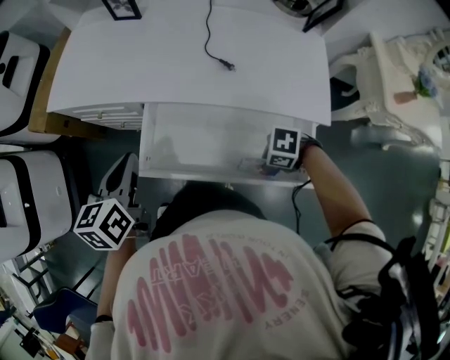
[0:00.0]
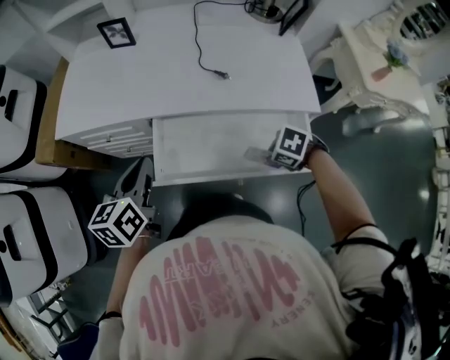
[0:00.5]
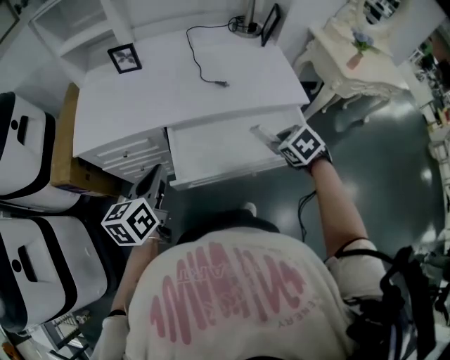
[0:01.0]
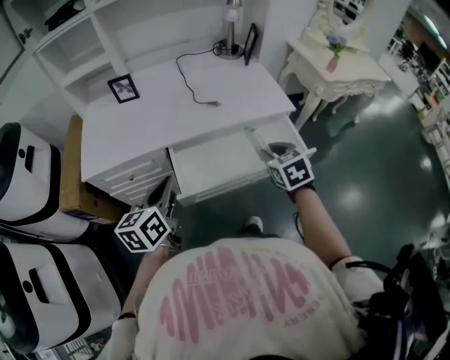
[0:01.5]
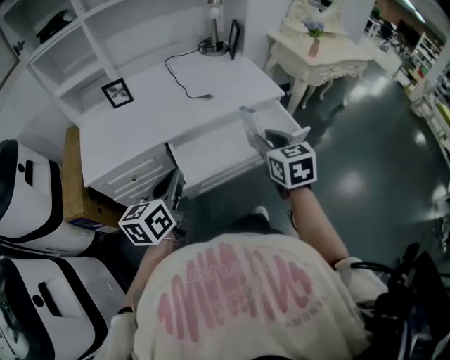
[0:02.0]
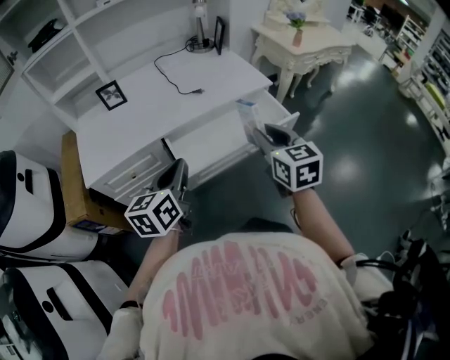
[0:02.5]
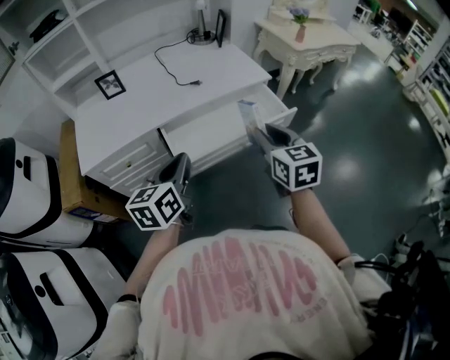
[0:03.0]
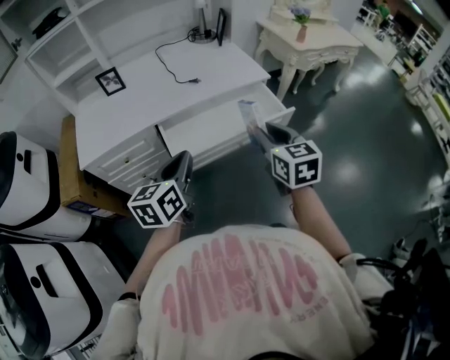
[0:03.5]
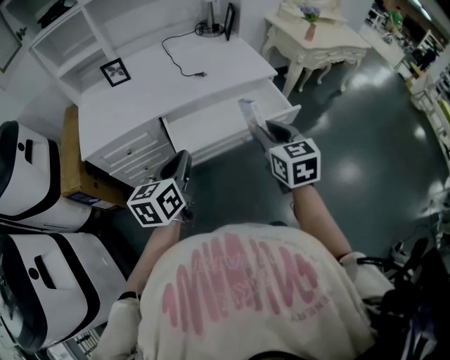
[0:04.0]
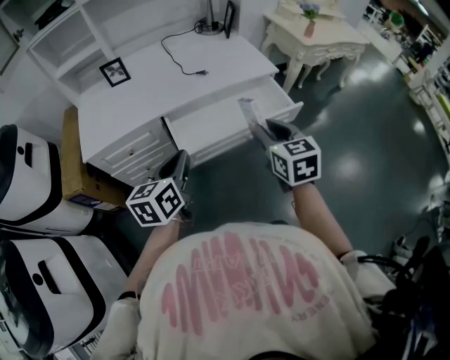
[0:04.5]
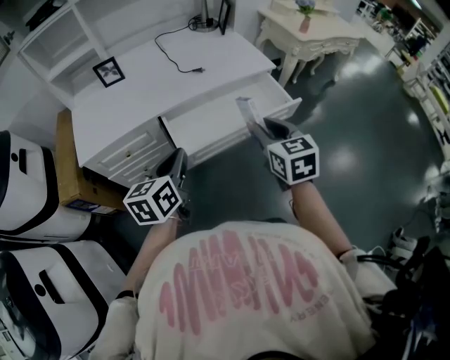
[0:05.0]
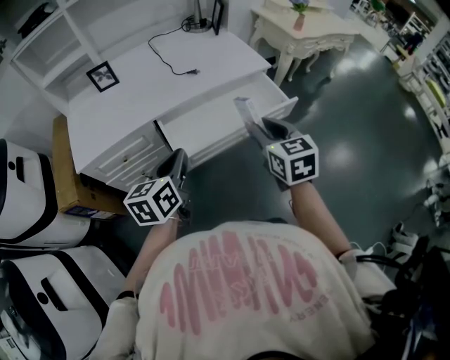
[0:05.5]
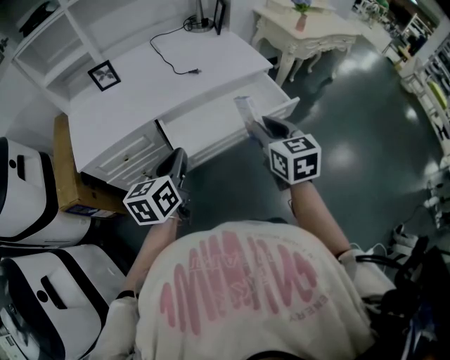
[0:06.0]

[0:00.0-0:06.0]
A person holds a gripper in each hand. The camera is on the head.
0:00.0 to 0:02.0: The right gripper is displaced upward by roughly 25 cm, and tilts its fingers roughly 40 degrees upward, while the left gripper changes place by roughly 10 cm, and changes its angle by approximately 40 degrees.
0:02.0 to 0:04.0: The left gripper is displaced to the right by roughly 5 cm, while the right gripper moves backward, roughly 10 cm.
0:04.0 to 0:06.0: The grippers make only small movements.

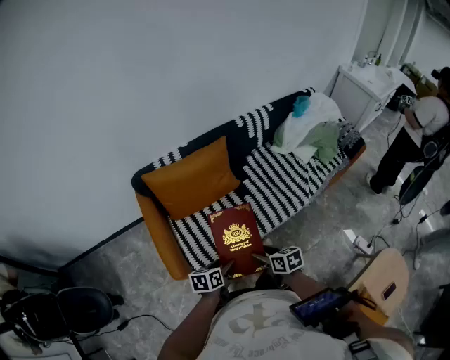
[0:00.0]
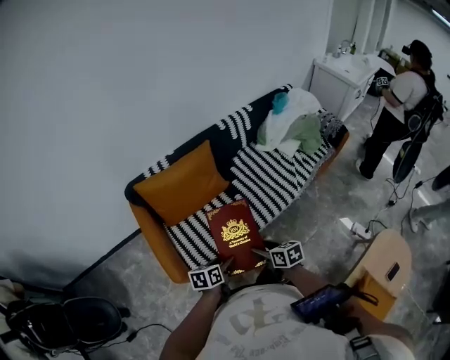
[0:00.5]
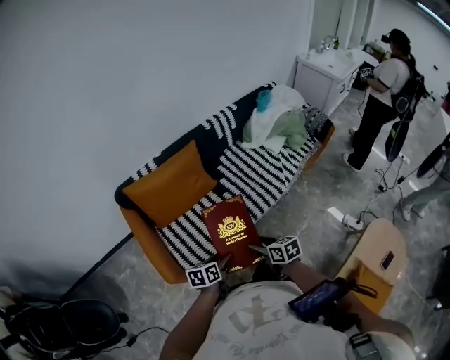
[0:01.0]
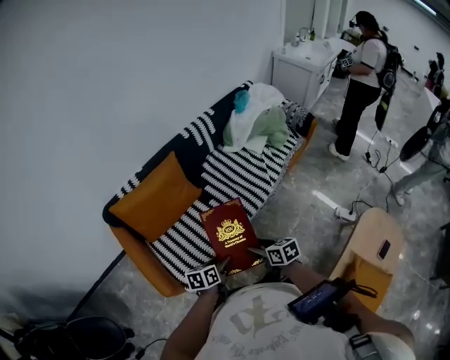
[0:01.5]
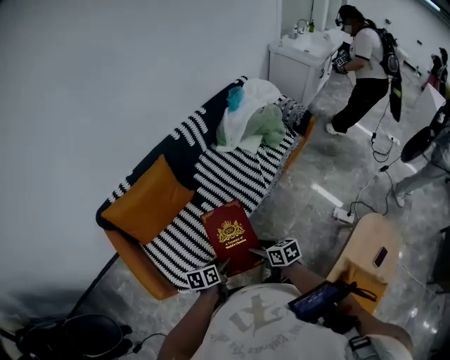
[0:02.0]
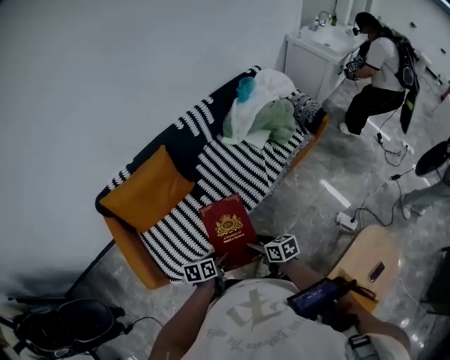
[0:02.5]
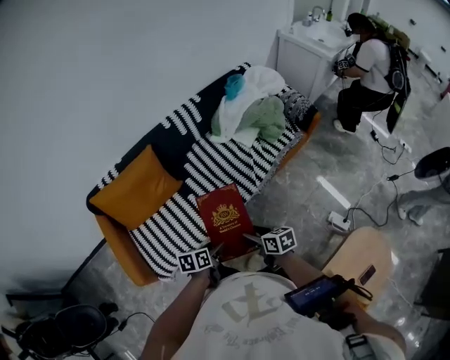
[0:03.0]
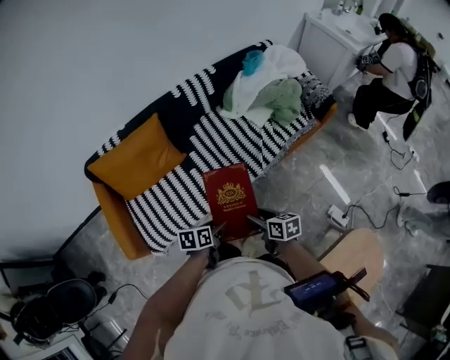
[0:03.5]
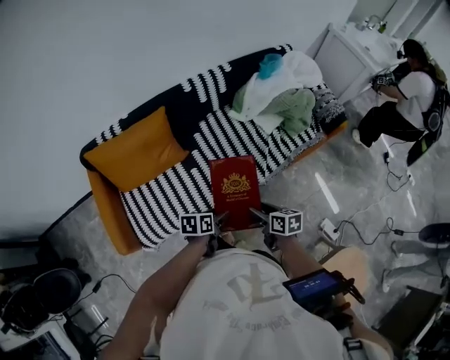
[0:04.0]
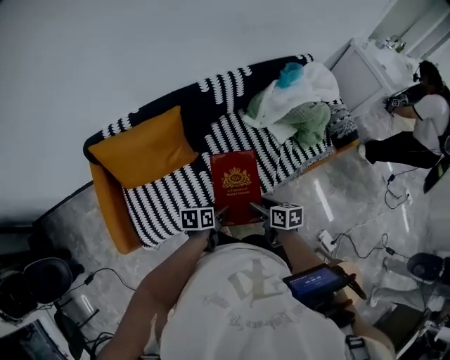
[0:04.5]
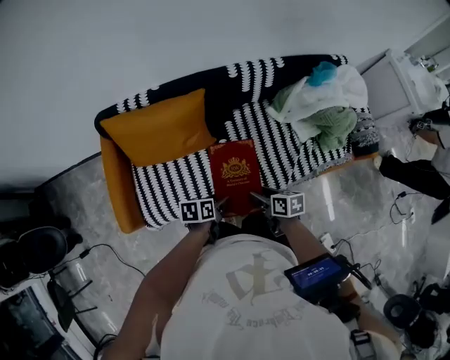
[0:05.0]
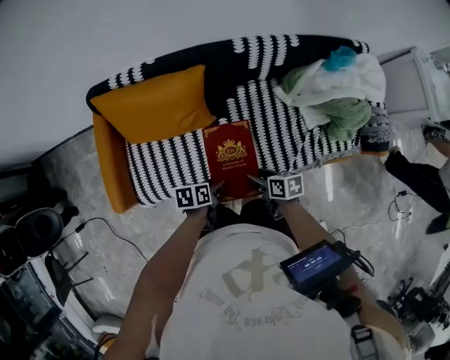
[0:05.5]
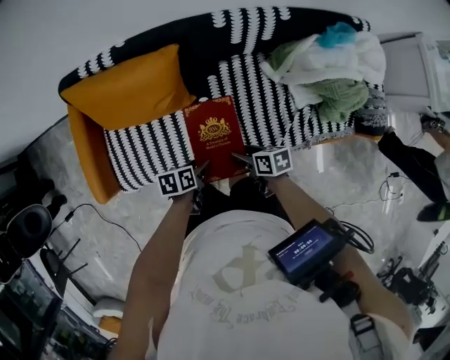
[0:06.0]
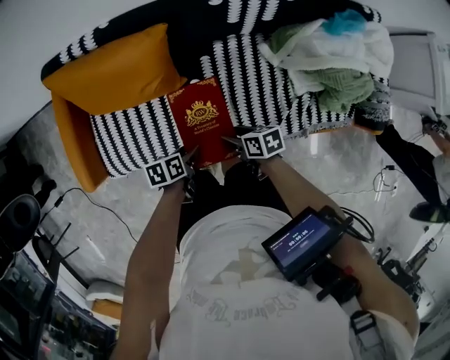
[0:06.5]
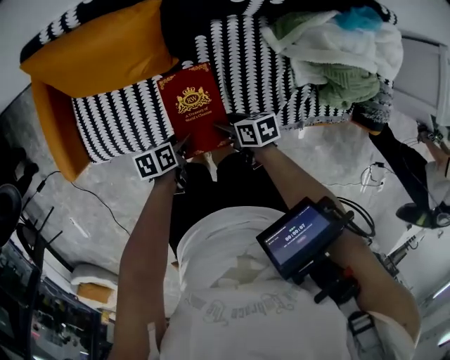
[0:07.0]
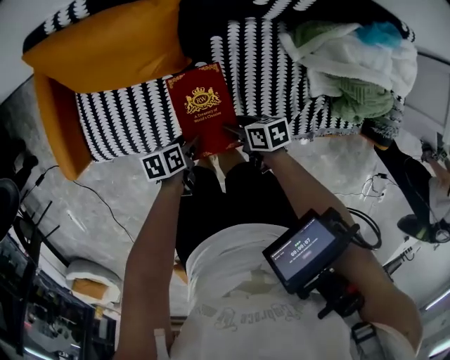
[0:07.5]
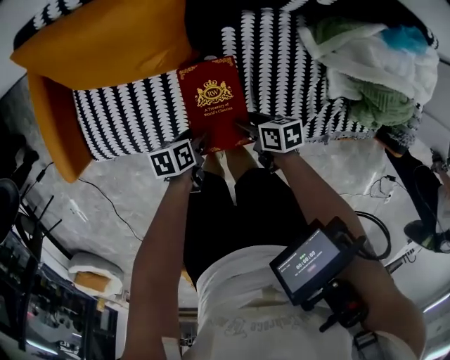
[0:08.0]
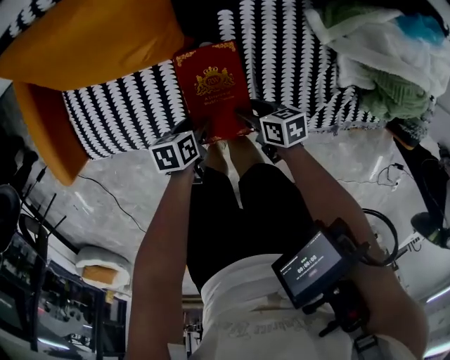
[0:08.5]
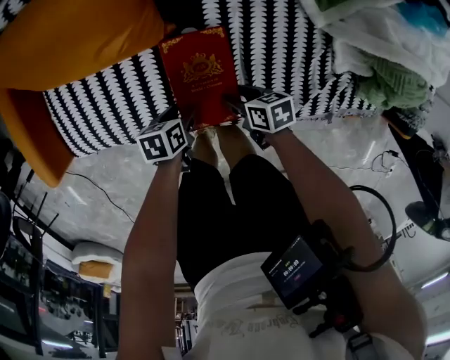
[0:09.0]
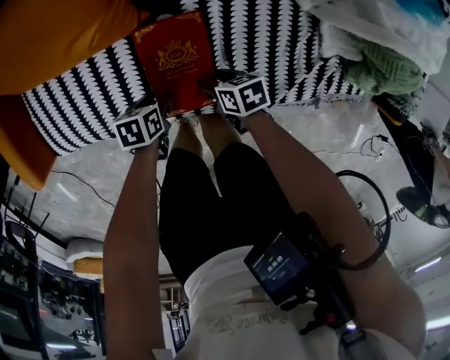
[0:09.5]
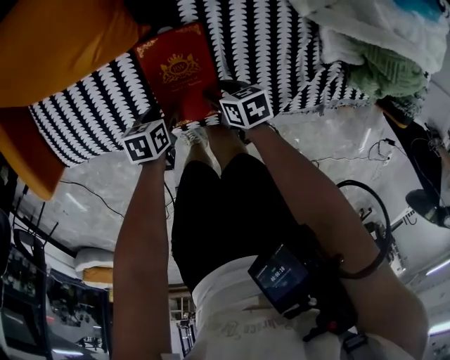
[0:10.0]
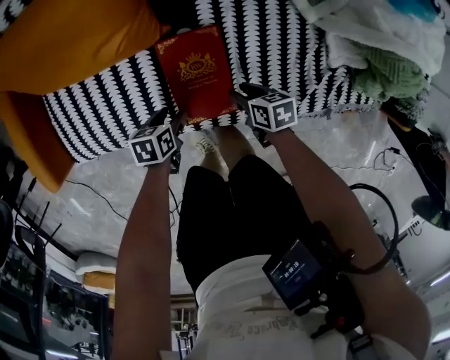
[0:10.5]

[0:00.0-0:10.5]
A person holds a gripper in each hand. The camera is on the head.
0:00.0 to 0:02.0: The two grippers go about 20 cm to the right.
0:02.0 to 0:04.0: The two grippers go approximately 20 cm forward and to the right.
0:04.0 to 0:06.5: The right gripper shifts by roughly 30 cm, and rotates approximately 40 degrees. Meanwhile the left gripper changes place by some 25 cm, and rotates approximately 30 degrees.
0:06.5 to 0:08.5: Both grippers travel together downward, some 20 cm.
0:08.5 to 0:10.5: The grippers stay close to where they were, moving slightly.

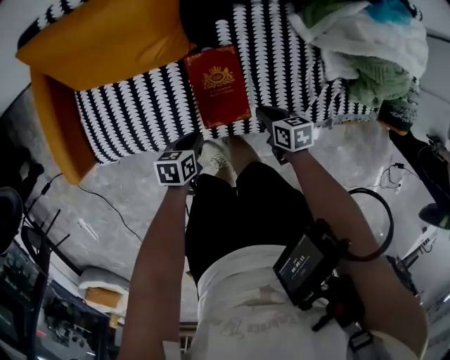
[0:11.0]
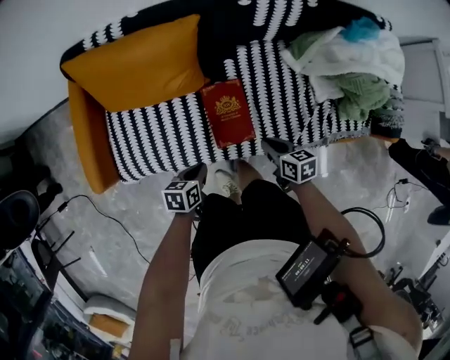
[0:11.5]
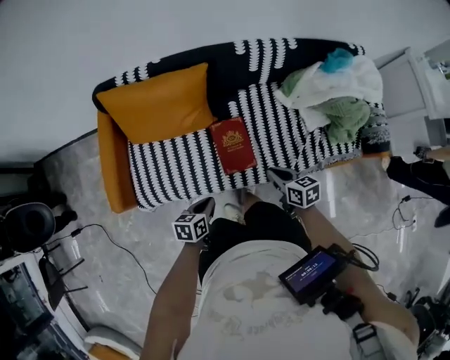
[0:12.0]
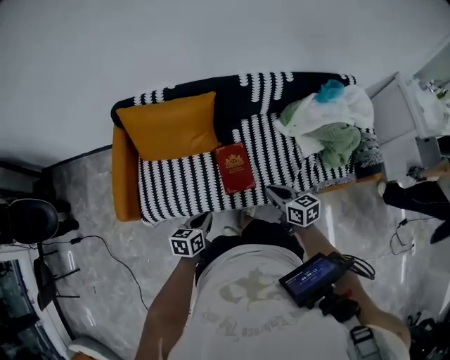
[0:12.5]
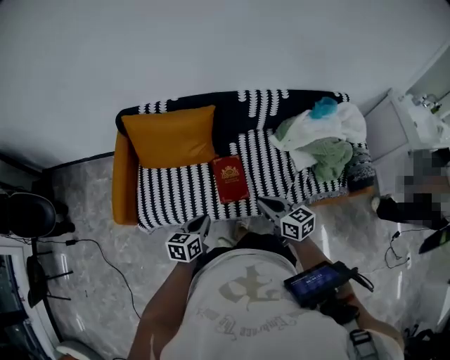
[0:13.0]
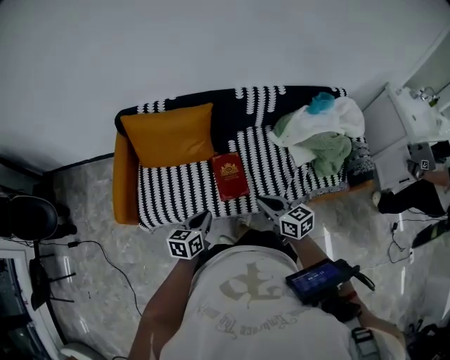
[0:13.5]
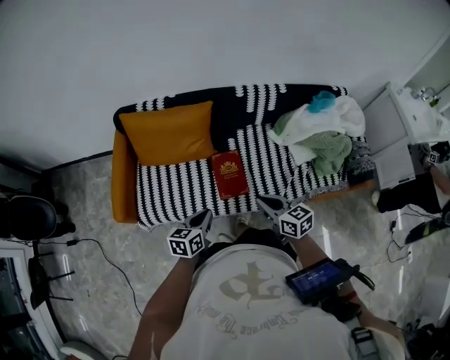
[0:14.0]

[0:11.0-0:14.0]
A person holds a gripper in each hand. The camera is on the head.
0:11.0 to 0:12.5: The left gripper shifts approximately 25 cm upward and backward, and swivels some 20 degrees, while the right gripper heads upward, covering roughly 30 cm, and swivels approximately 30 degrees.
0:12.5 to 0:14.0: The two grippers go some 5 cm upward.

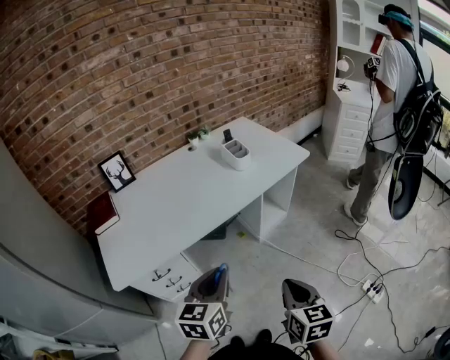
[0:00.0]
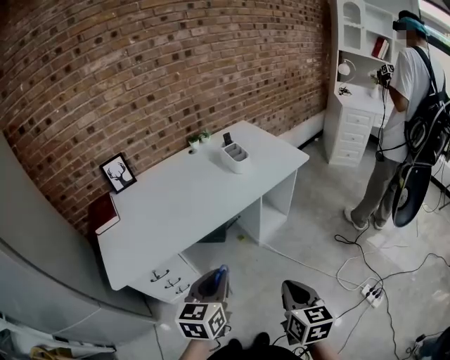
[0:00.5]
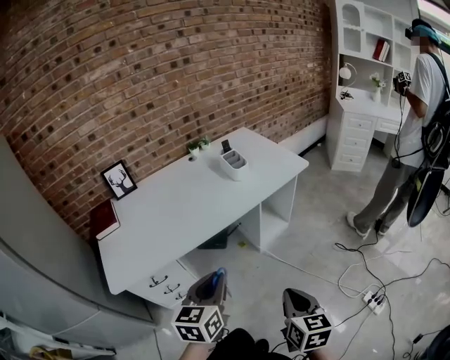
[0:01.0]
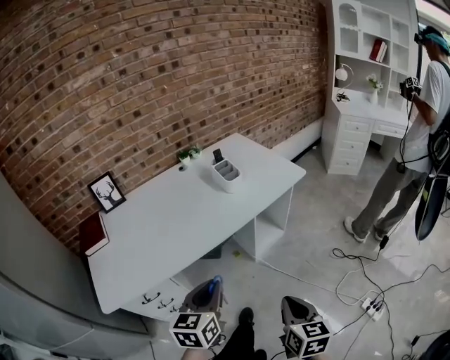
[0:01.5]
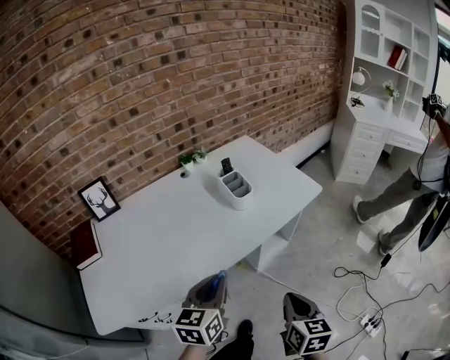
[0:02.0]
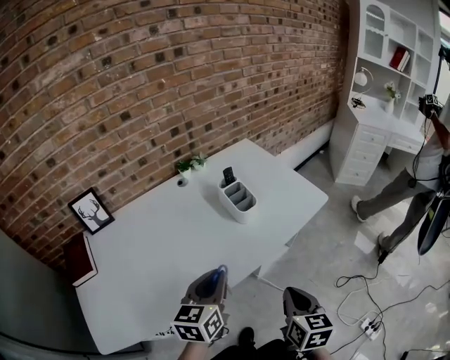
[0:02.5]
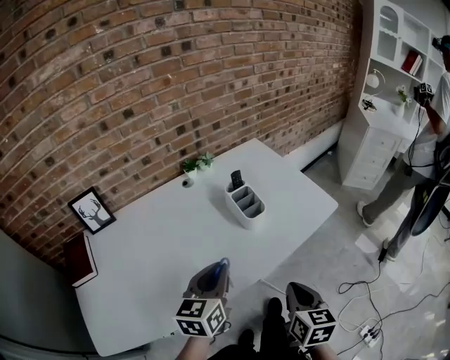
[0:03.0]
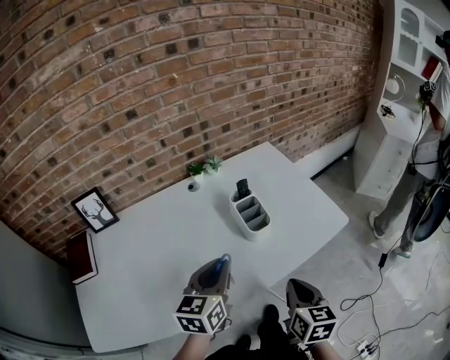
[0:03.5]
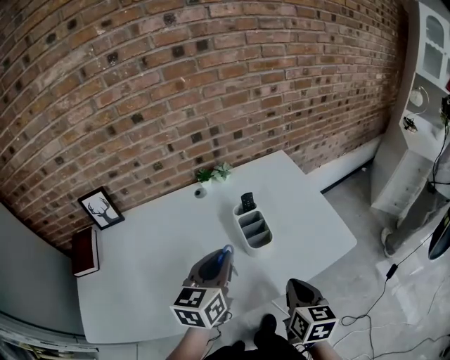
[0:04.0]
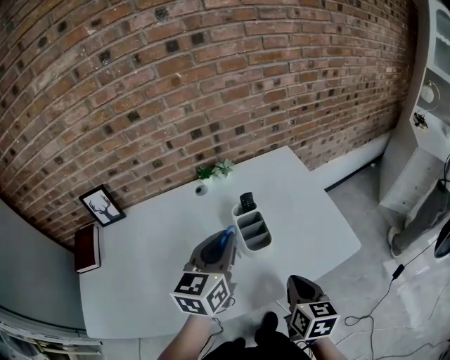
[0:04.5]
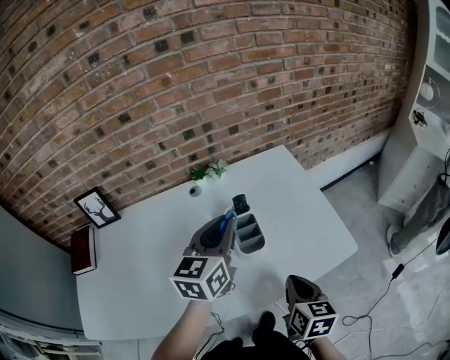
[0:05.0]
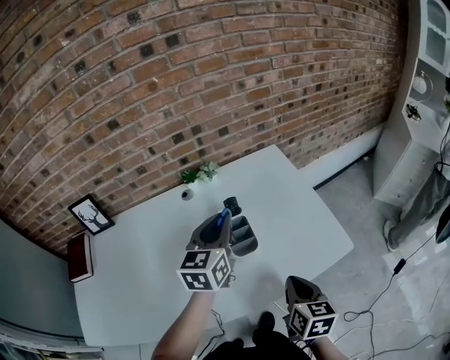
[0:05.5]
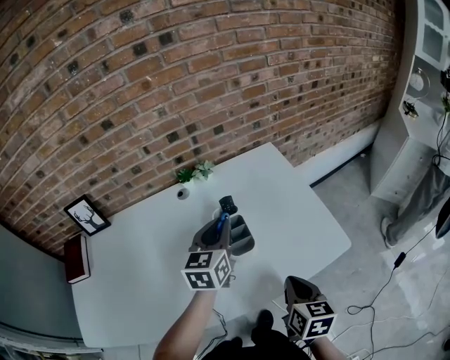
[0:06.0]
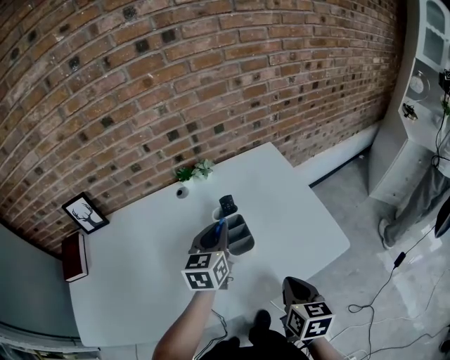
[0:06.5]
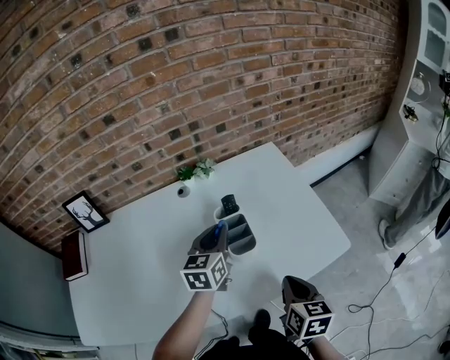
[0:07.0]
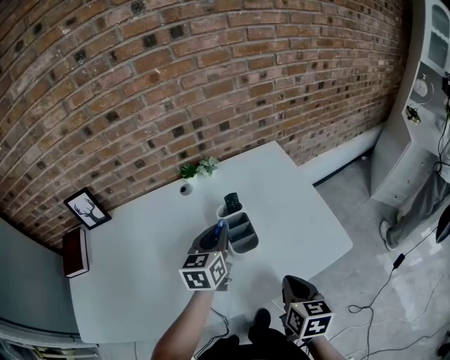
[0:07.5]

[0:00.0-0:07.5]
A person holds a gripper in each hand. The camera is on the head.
0:00.0 to 0:02.0: Both grippers travel together forward, approximately 20 cm.
0:02.0 to 0:04.0: The grippers both shift forward by some 30 cm.
0:04.0 to 0:05.5: The right gripper ends up approximately 5 cm from where it was, while the left gripper shifts roughly 15 cm forward and to the right.
0:05.5 to 0:07.5: The left gripper moves downward, approximately 10 cm.
